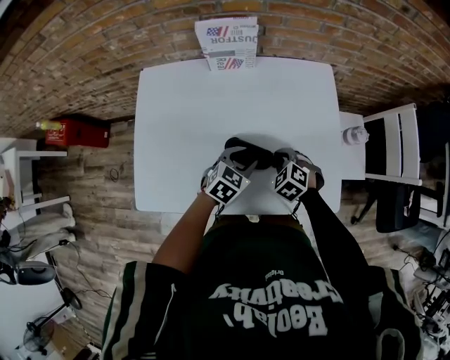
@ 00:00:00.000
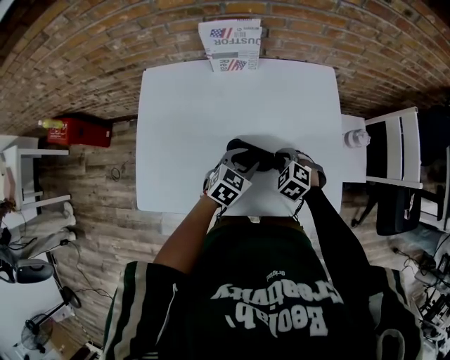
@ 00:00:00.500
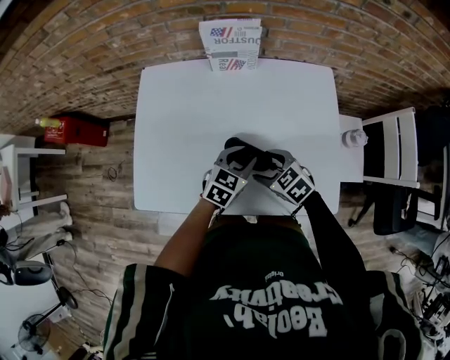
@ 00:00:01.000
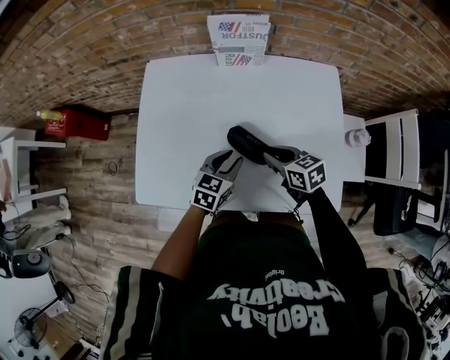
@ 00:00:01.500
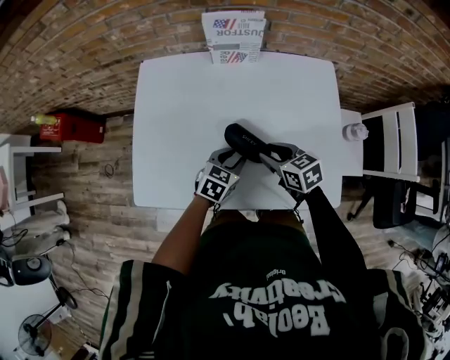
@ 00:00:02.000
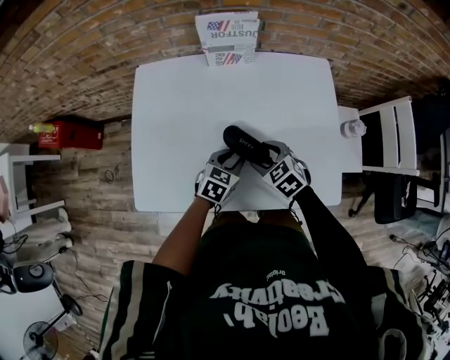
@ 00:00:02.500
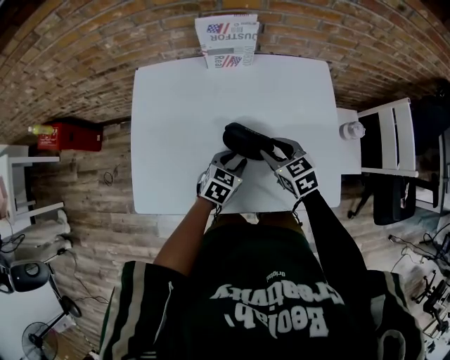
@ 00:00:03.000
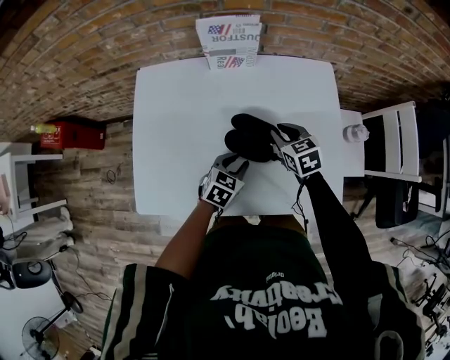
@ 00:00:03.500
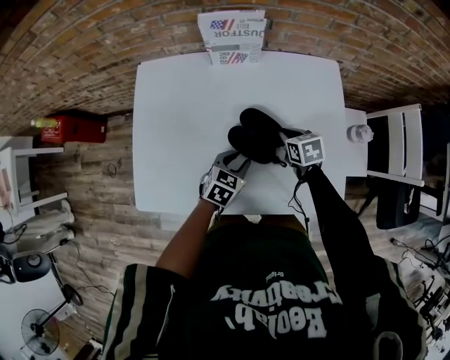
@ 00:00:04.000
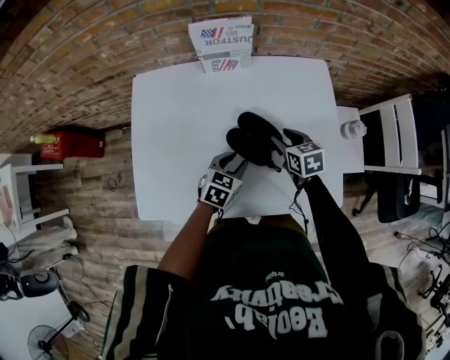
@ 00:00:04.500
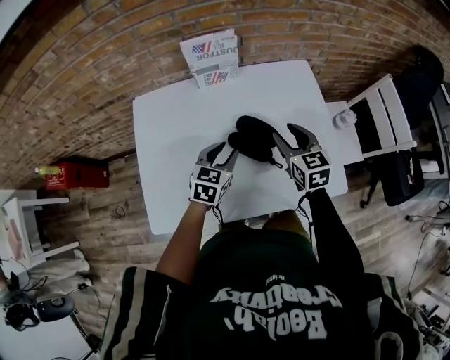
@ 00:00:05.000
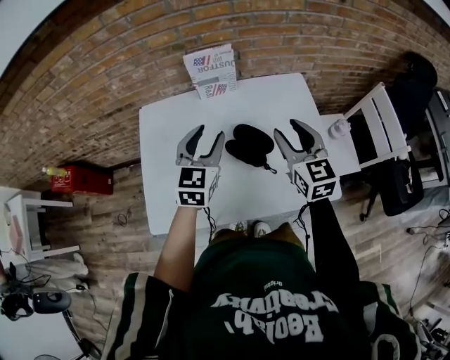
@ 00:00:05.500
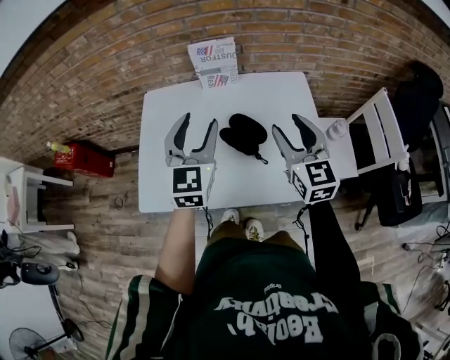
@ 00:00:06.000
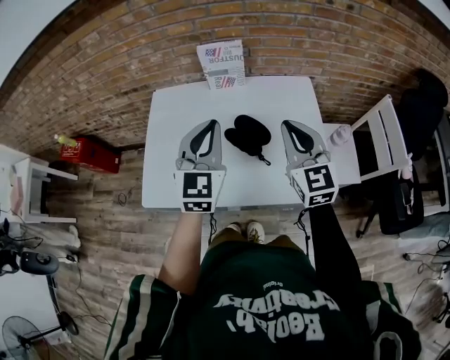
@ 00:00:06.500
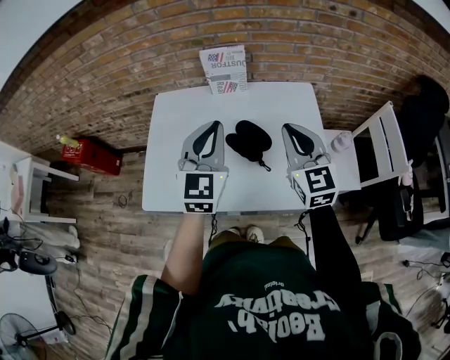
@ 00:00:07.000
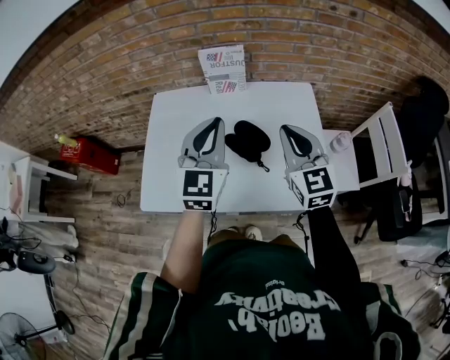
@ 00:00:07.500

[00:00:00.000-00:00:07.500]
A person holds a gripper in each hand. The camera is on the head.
00:00:00.000 to 00:00:02.000: The left gripper heads to the left, covering some 5 cm. The right gripper goes some 10 cm to the left and upward, swivels roughly 50 degrees, and opens its fingers.
00:00:02.000 to 00:00:04.000: The right gripper moves forward, downward and to the right, some 10 cm, and closes.
00:00:04.000 to 00:00:05.500: Both grippers move upward, approximately 25 cm. The right gripper angles its fingers upward, by roughly 40 degrees, and opens its fingers. Meanwhile the left gripper swivels approximately 30 degrees.
00:00:05.500 to 00:00:07.500: The left gripper shifts some 10 cm upward and backward, and closes up; the right gripper shifts by approximately 5 cm, and closes its fingers.

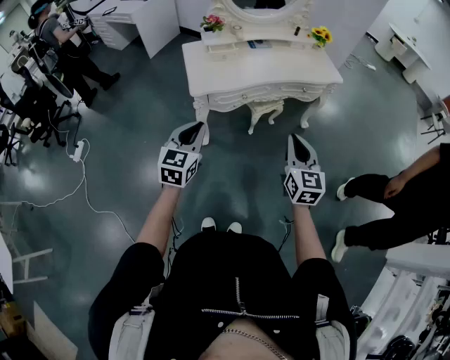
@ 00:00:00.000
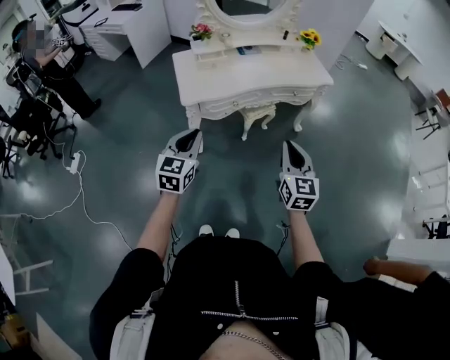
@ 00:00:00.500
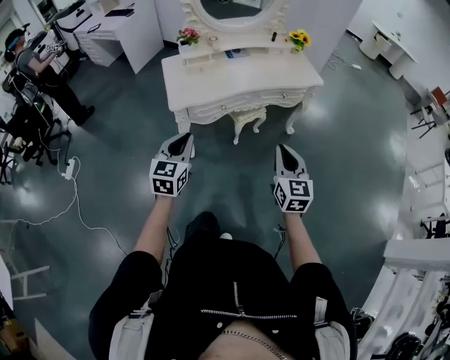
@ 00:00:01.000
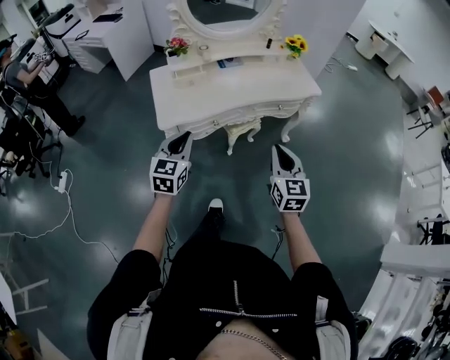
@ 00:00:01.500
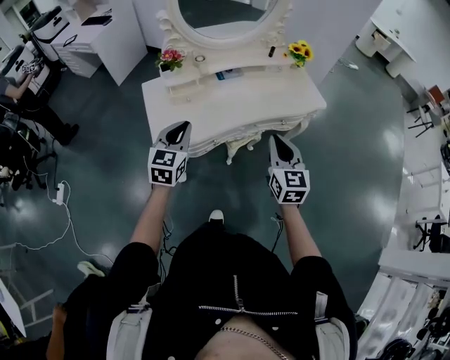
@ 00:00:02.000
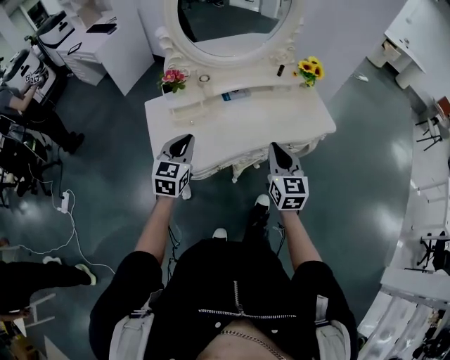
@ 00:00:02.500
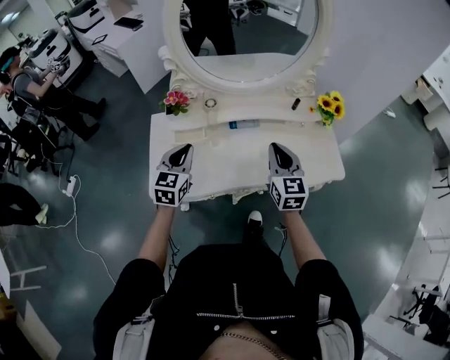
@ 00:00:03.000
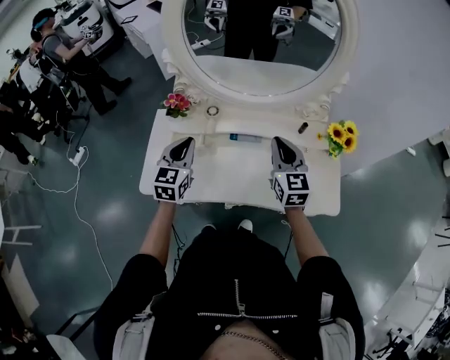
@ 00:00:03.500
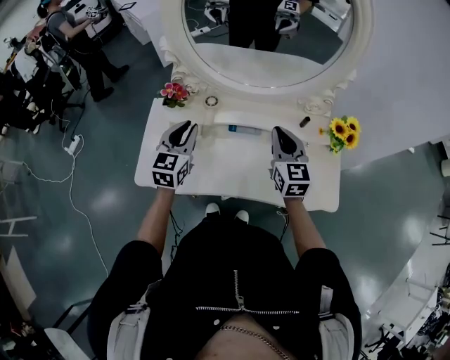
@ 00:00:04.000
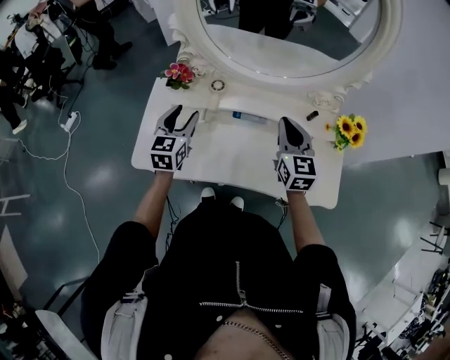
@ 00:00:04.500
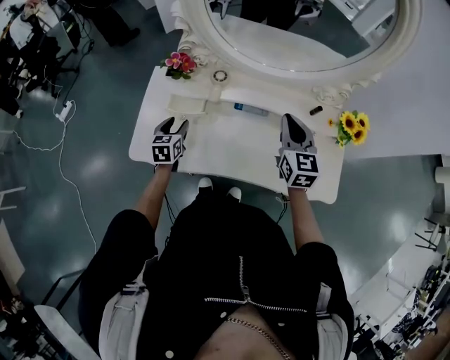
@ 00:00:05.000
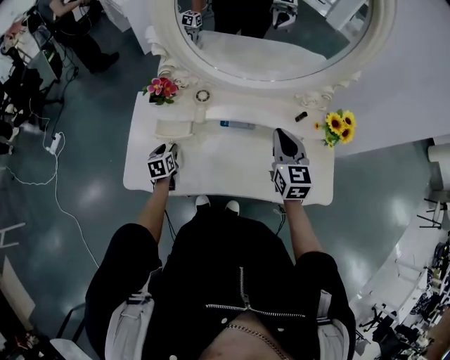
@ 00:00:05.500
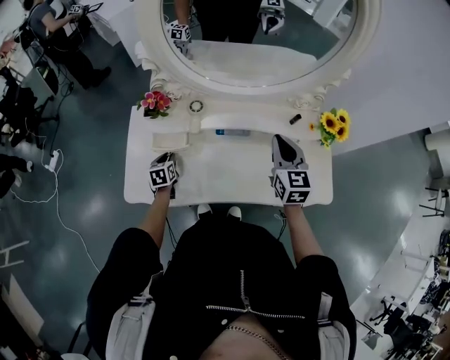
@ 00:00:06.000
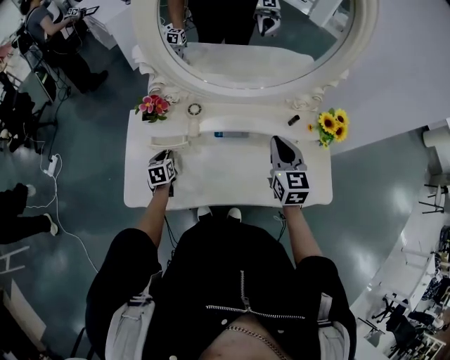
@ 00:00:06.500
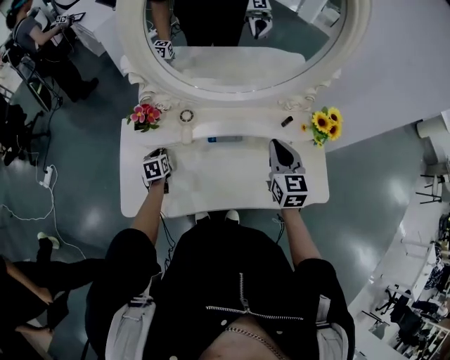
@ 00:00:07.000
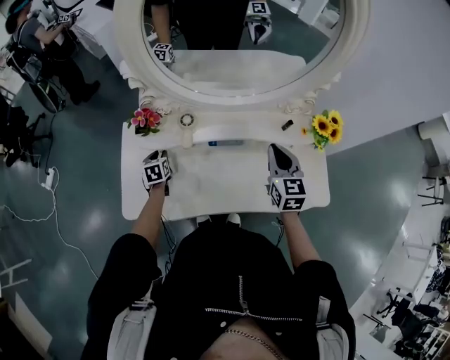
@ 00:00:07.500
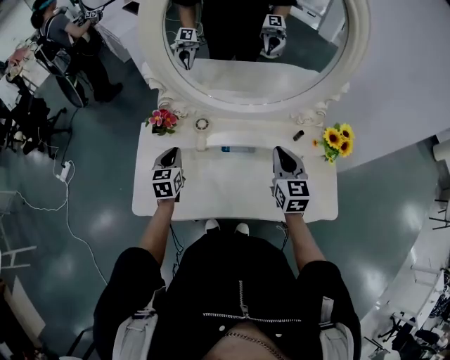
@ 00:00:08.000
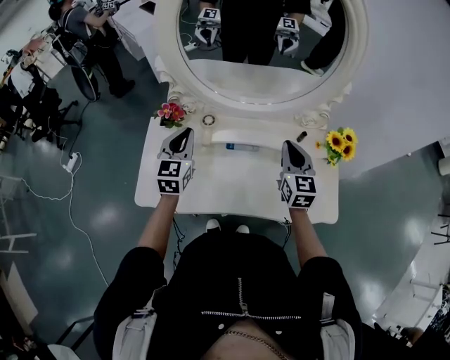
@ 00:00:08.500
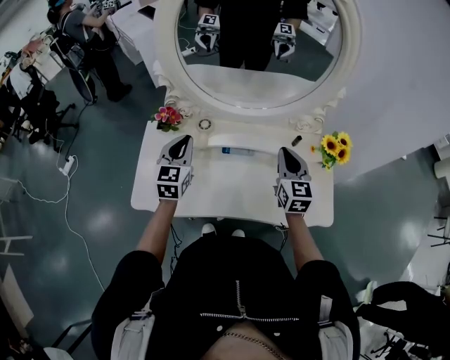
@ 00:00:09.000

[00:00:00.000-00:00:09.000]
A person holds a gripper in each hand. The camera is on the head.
00:00:00.000 to 00:00:02.000: The two grippers go about 30 cm forward.
00:00:02.000 to 00:00:04.500: The right gripper changes place by about 40 cm, and swivels roughly 30 degrees, while the left gripper shifts by approximately 30 cm, rotates roughly 30 degrees, and opens.
00:00:04.500 to 00:00:07.000: The left gripper shifts about 25 cm downward, swivels roughly 30 degrees, and closes; the right gripper ends up about 5 cm from where it was.
00:00:07.000 to 00:00:09.000: The left gripper travels upward by about 25 cm, and points its fingers some 30 degrees further upward.

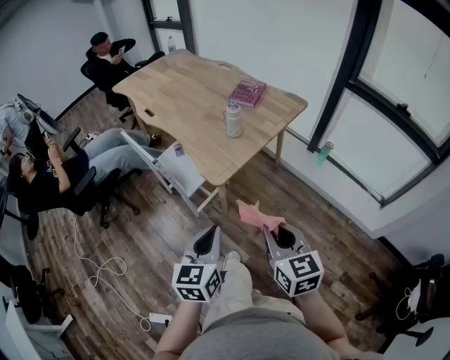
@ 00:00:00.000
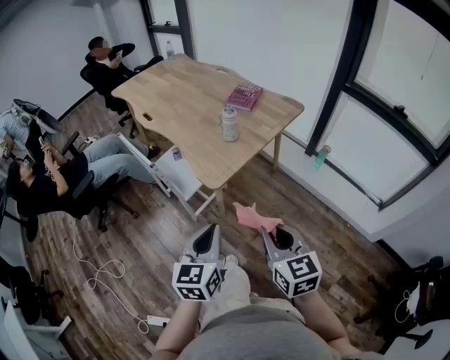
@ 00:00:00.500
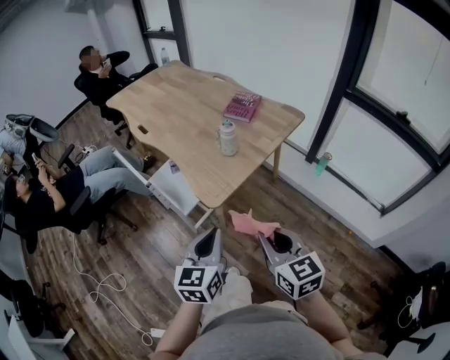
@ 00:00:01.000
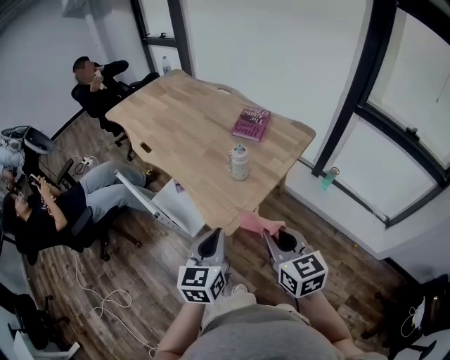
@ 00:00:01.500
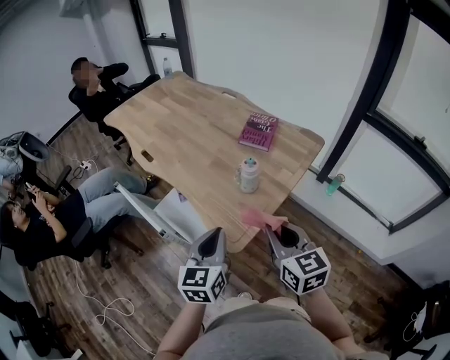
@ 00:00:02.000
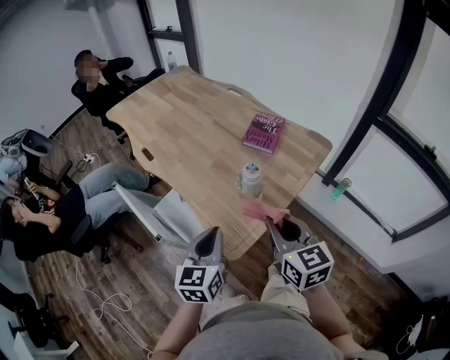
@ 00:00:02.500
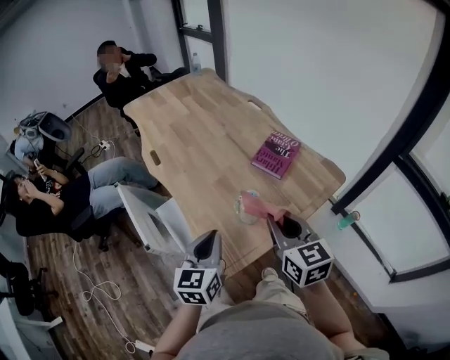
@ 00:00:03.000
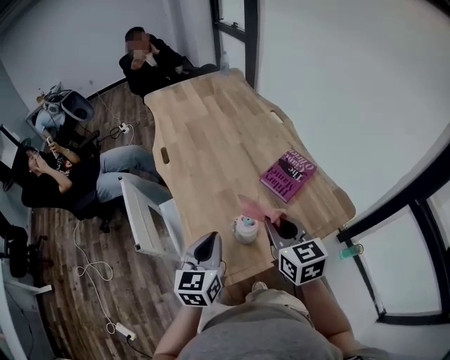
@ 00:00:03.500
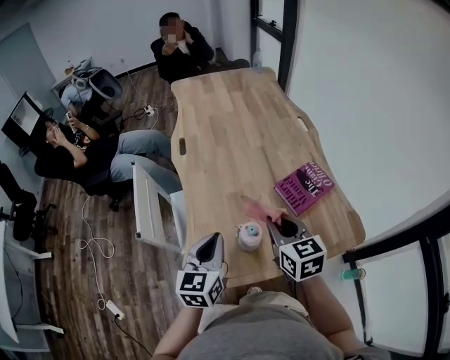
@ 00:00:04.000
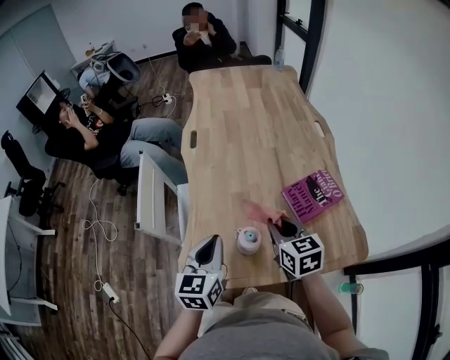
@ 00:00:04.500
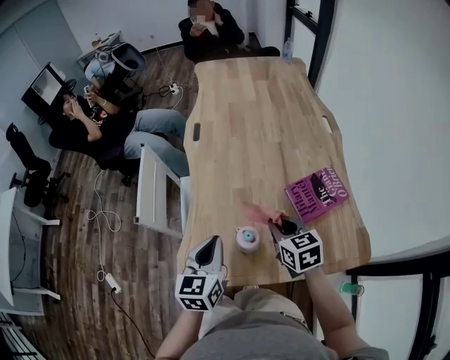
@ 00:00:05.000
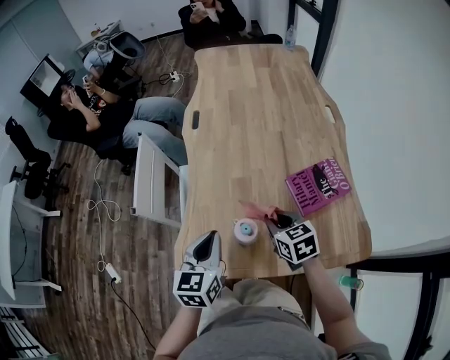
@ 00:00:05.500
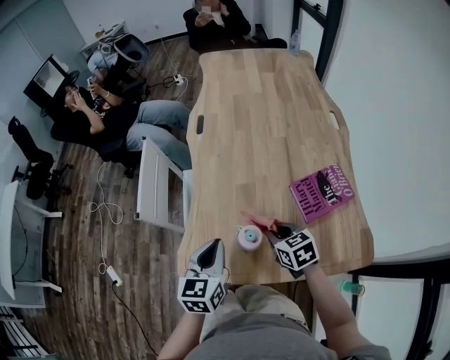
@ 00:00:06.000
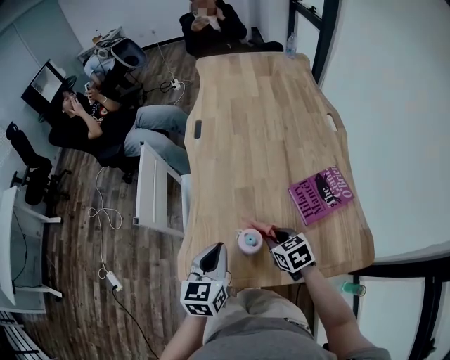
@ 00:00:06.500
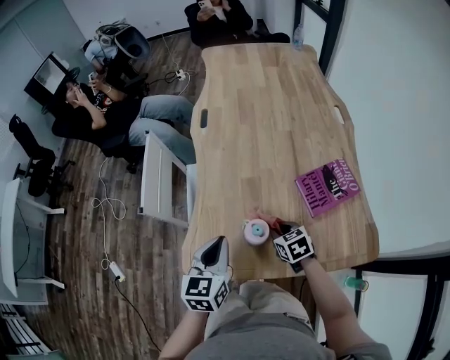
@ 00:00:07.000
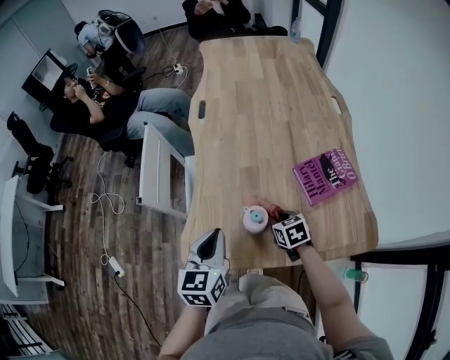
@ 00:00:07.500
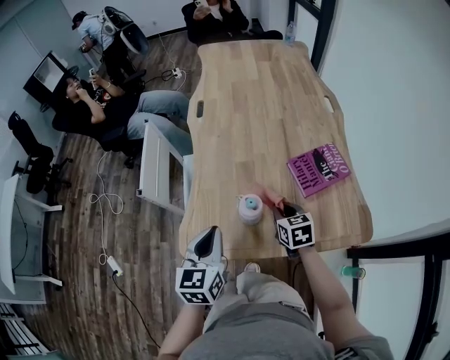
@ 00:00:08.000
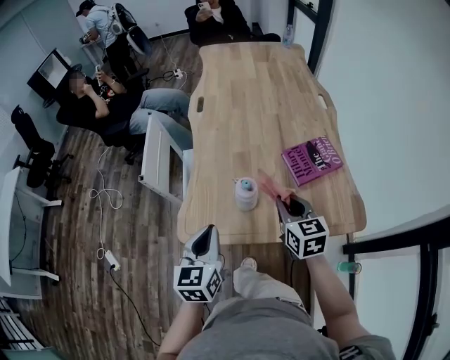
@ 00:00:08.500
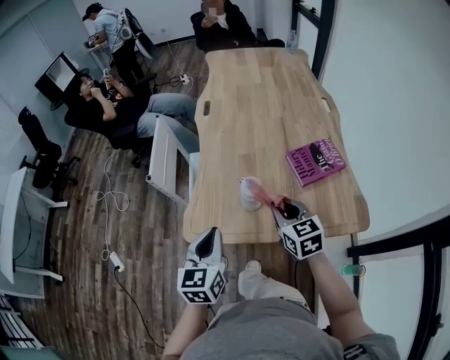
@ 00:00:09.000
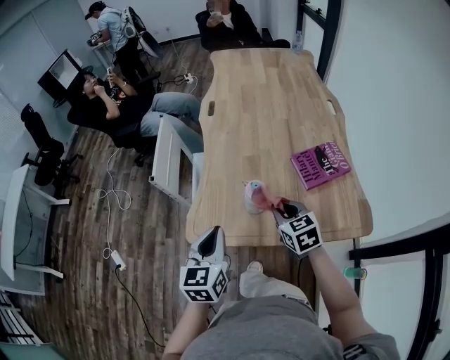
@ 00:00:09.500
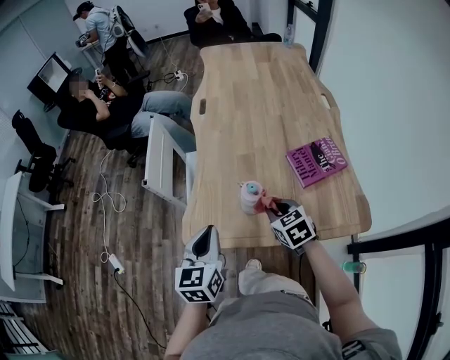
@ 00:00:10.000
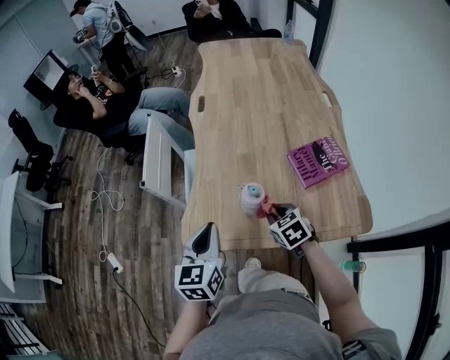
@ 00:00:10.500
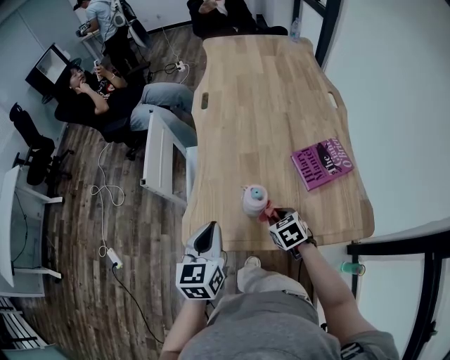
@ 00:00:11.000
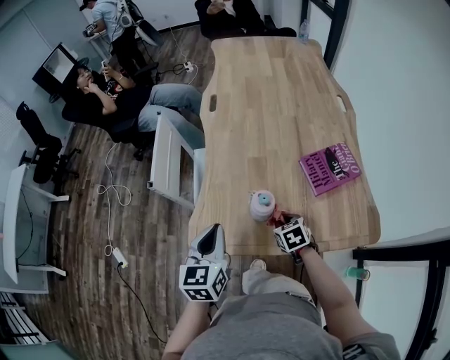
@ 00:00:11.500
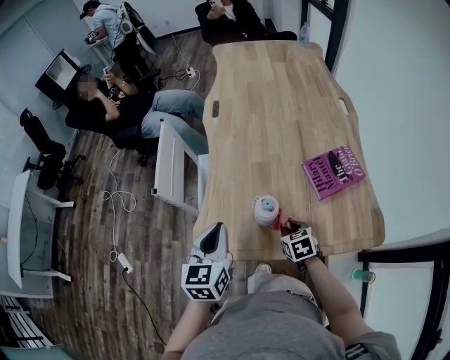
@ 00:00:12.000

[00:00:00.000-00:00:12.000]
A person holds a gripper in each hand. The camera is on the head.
00:00:00.000 to 00:00:02.000: Both grippers travel together forward, about 25 cm.
00:00:02.000 to 00:00:04.000: The left gripper changes place by roughly 20 cm, and swivels some 40 degrees, while the right gripper shifts by some 30 cm, and rotates approximately 40 degrees.
00:00:04.000 to 00:00:06.000: The right gripper shifts roughly 15 cm downward, and changes its angle by some 30 degrees. The left gripper heads downward, covering roughly 5 cm.
00:00:06.000 to 00:00:08.000: The right gripper travels downward and back again, about 10 cm each way. The left gripper shifts roughly 5 cm backward.
00:00:08.000 to 00:00:10.000: The right gripper reaches about 10 cm upward, then returns.
00:00:10.000 to 00:00:12.000: The right gripper heads downward, covering approximately 10 cm. Meanwhile the left gripper goes some 5 cm forward.
